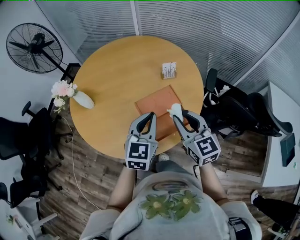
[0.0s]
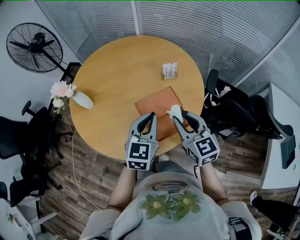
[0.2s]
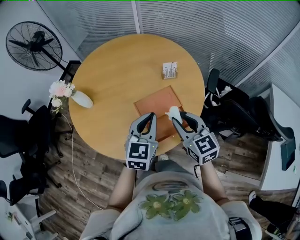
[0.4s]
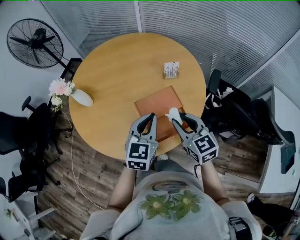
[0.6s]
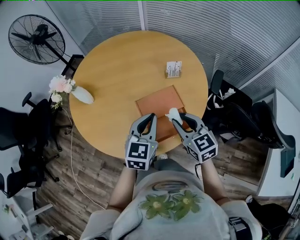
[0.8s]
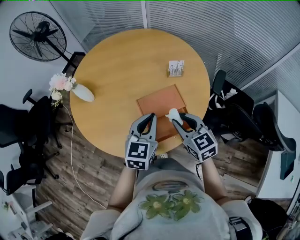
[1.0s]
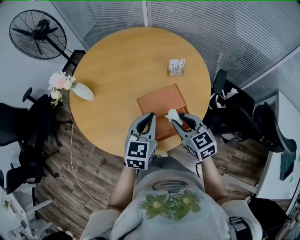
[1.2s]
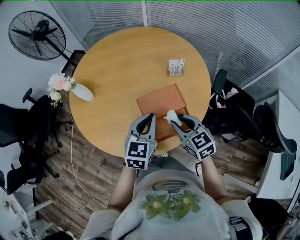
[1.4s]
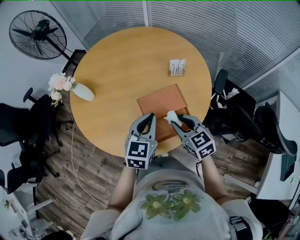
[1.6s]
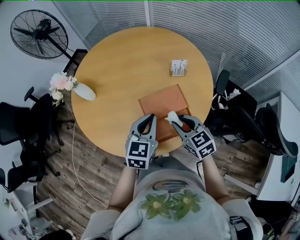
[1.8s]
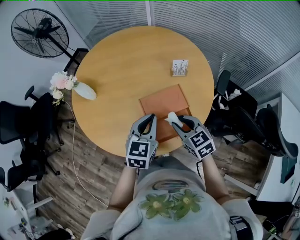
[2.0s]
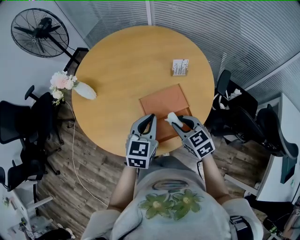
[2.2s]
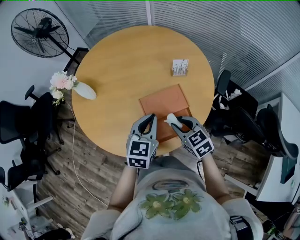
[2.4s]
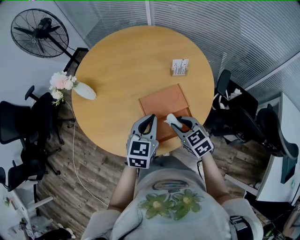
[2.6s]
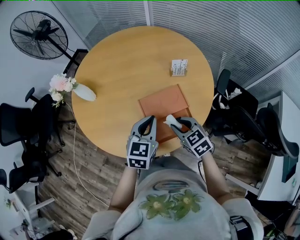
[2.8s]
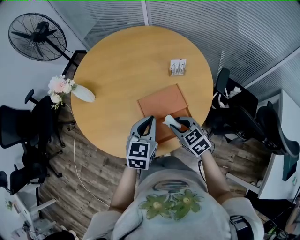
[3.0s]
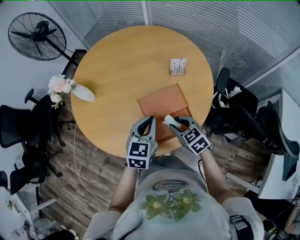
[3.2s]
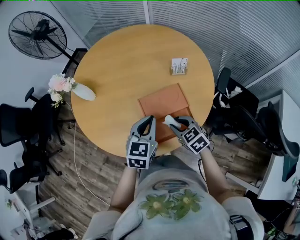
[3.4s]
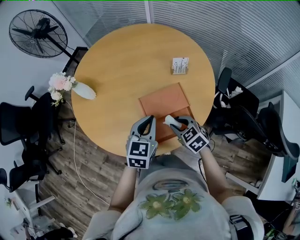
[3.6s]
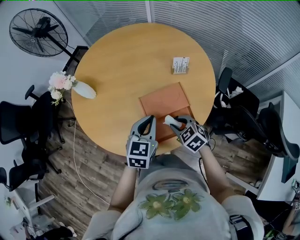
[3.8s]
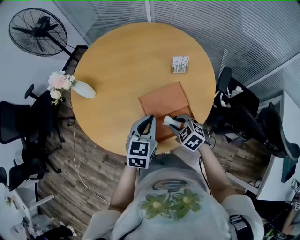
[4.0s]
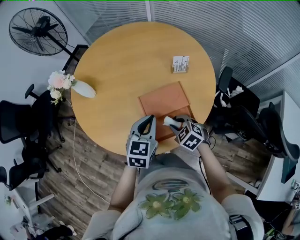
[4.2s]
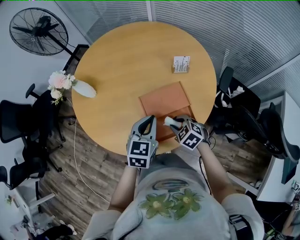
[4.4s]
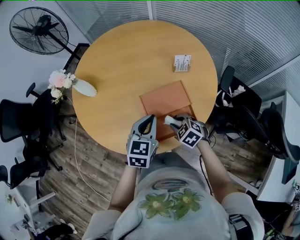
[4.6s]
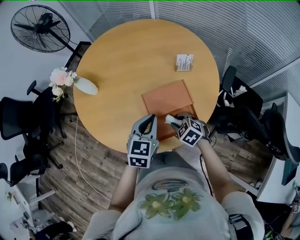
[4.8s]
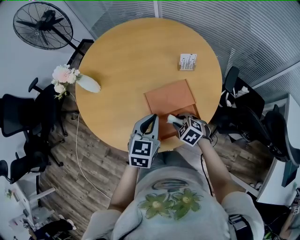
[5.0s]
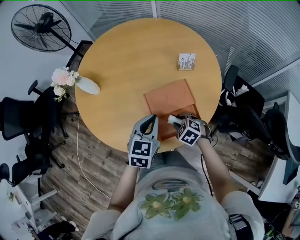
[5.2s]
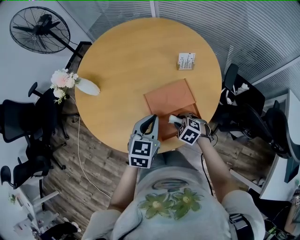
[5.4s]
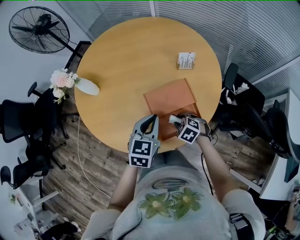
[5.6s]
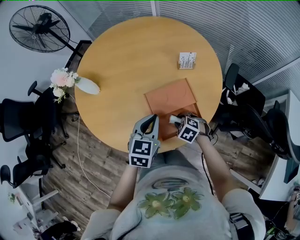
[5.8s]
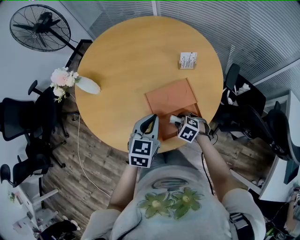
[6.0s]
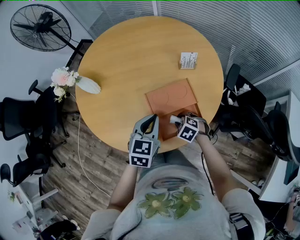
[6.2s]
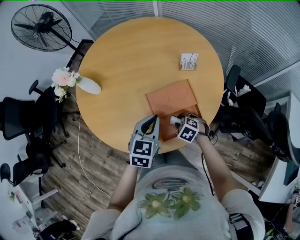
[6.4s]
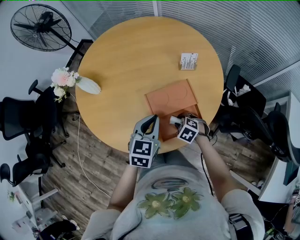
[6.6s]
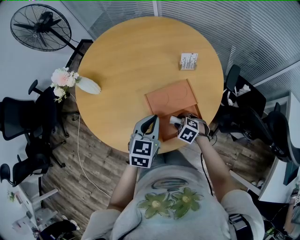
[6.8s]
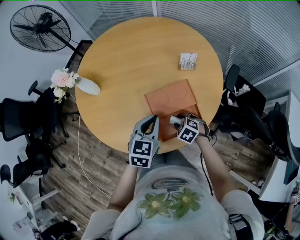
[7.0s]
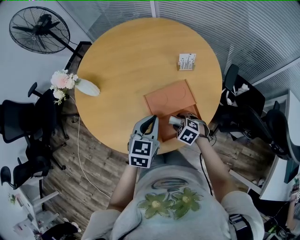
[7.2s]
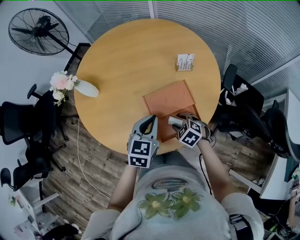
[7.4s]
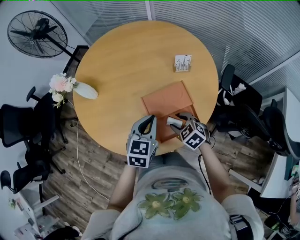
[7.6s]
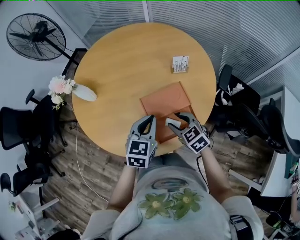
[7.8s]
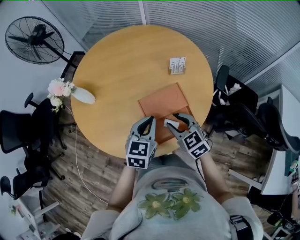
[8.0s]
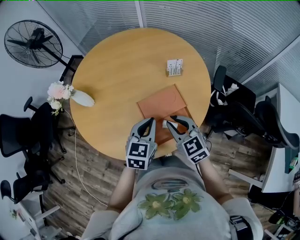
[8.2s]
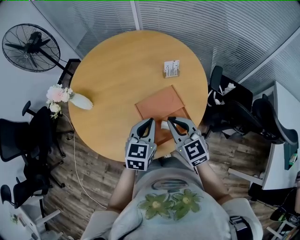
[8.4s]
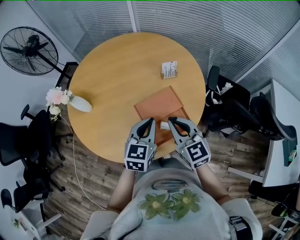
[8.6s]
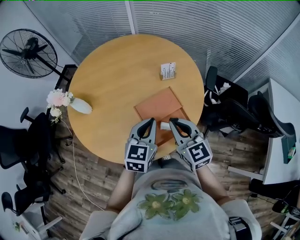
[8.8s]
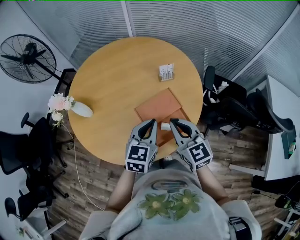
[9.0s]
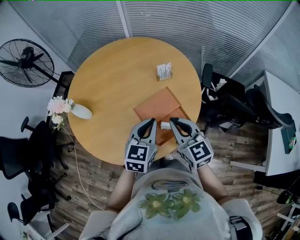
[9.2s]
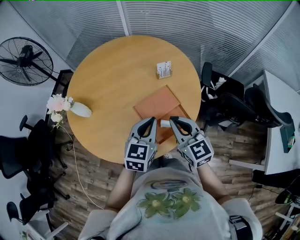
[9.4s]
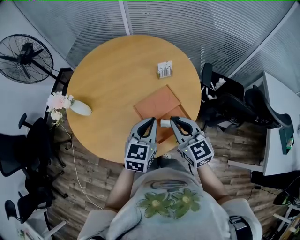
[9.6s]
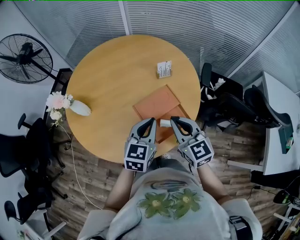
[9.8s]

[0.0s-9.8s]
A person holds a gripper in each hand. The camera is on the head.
0.0s to 1.4s: The right gripper moves downward, about 10 cm, and swivels approximately 20 degrees; the left gripper heads downward, covering roughly 5 cm.
1.4s to 2.8s: The right gripper shifts roughly 5 cm downward.
2.8s to 4.2s: The right gripper travels downward by roughly 5 cm, and swivels some 20 degrees.
4.2s to 5.6s: The right gripper travels downward by approximately 5 cm.
5.6s to 7.0s: The grippers make only small movements.
7.0s to 8.4s: The right gripper shifts approximately 25 cm upward, tilts its fingers approximately 50 degrees upward, and closes up.
8.4s to 9.8s: The right gripper shifts by about 5 cm.

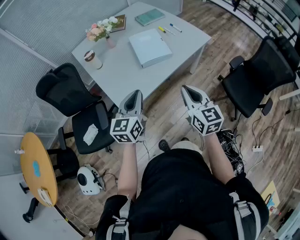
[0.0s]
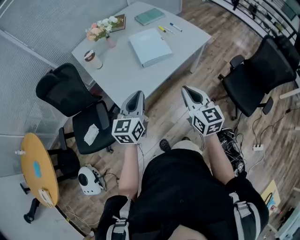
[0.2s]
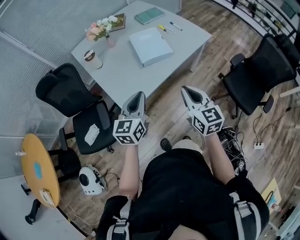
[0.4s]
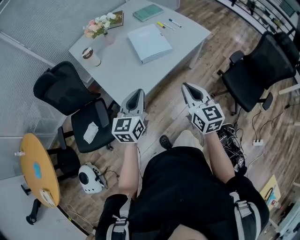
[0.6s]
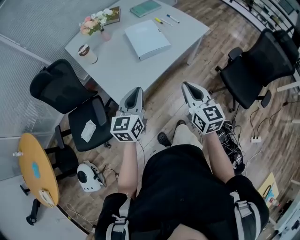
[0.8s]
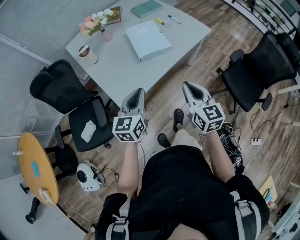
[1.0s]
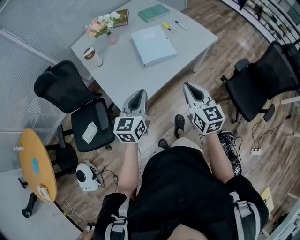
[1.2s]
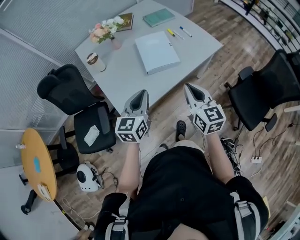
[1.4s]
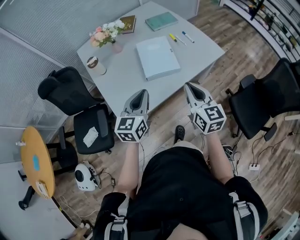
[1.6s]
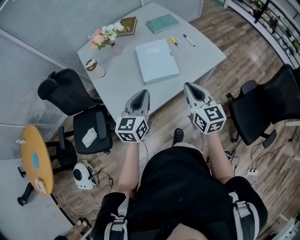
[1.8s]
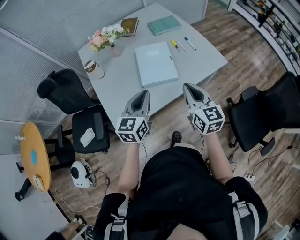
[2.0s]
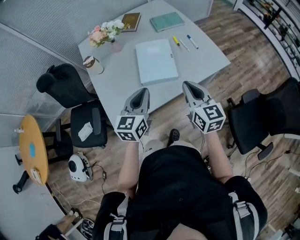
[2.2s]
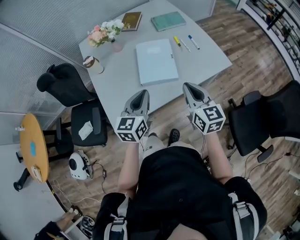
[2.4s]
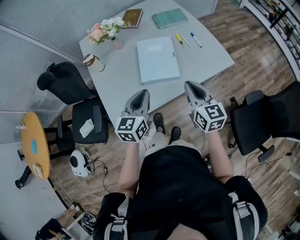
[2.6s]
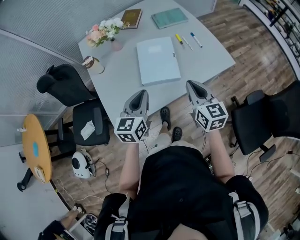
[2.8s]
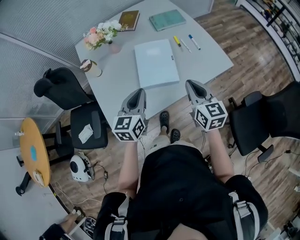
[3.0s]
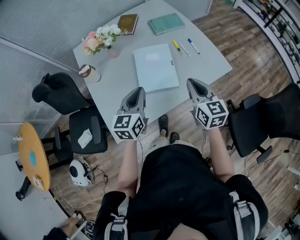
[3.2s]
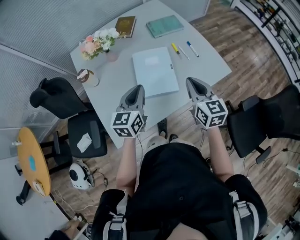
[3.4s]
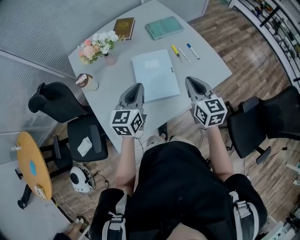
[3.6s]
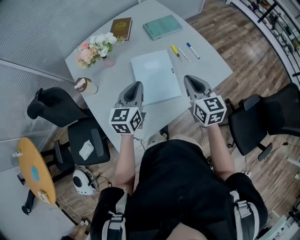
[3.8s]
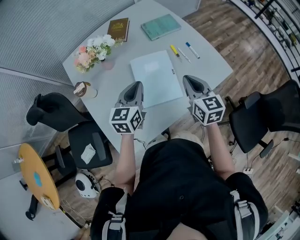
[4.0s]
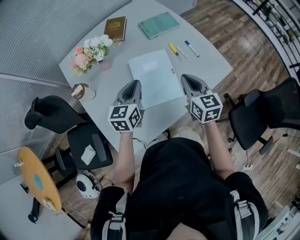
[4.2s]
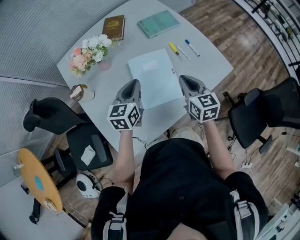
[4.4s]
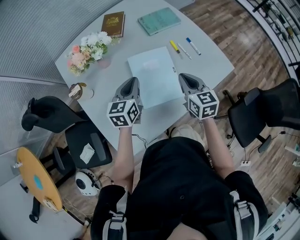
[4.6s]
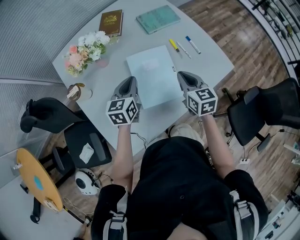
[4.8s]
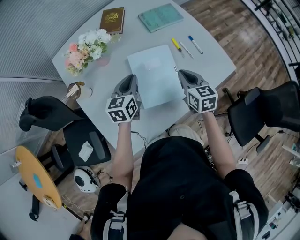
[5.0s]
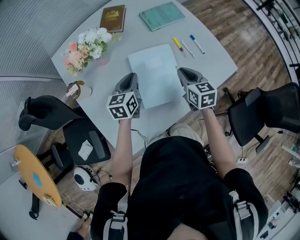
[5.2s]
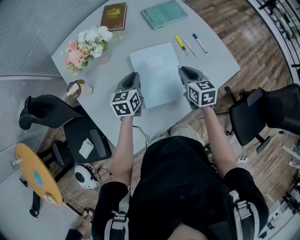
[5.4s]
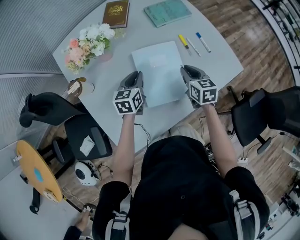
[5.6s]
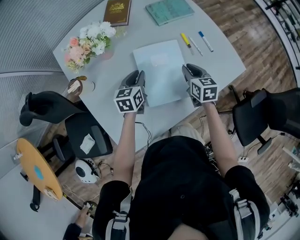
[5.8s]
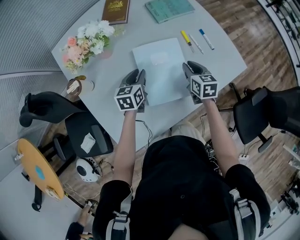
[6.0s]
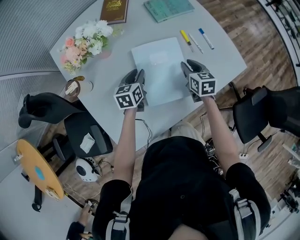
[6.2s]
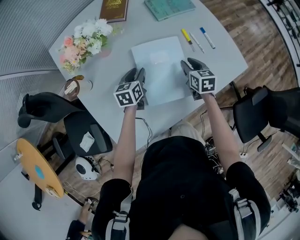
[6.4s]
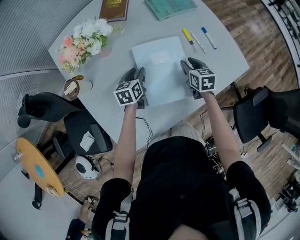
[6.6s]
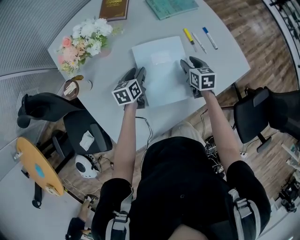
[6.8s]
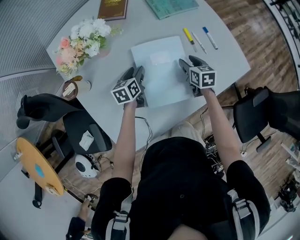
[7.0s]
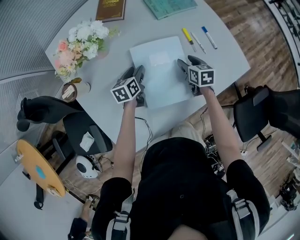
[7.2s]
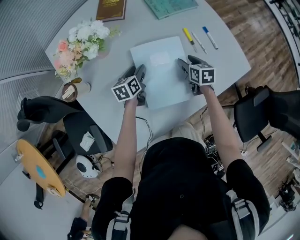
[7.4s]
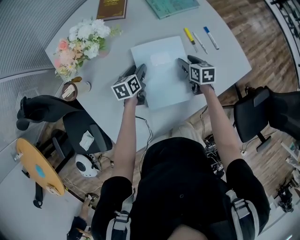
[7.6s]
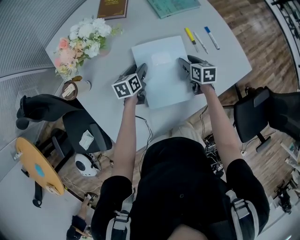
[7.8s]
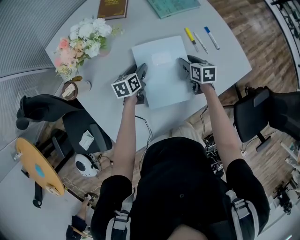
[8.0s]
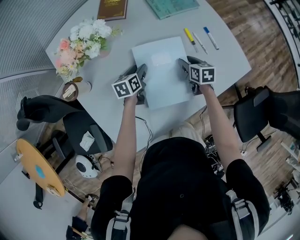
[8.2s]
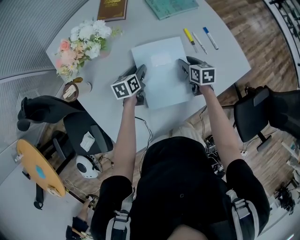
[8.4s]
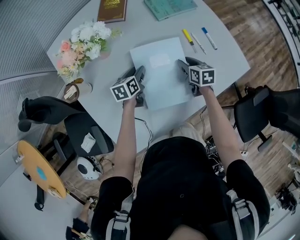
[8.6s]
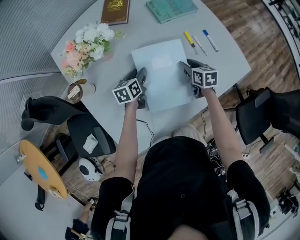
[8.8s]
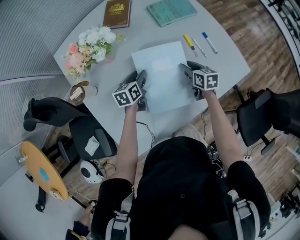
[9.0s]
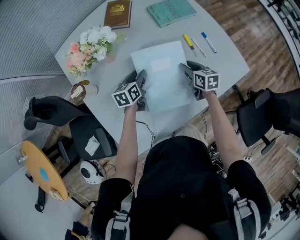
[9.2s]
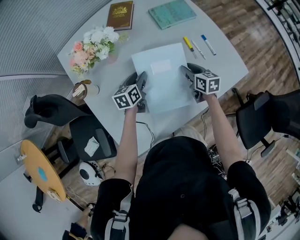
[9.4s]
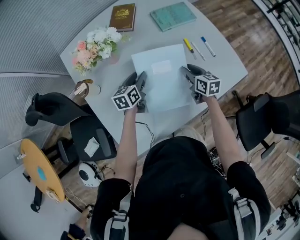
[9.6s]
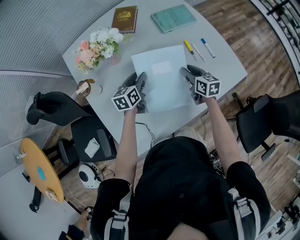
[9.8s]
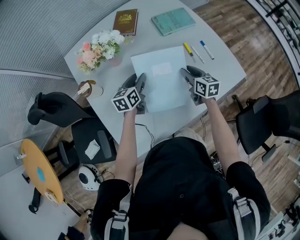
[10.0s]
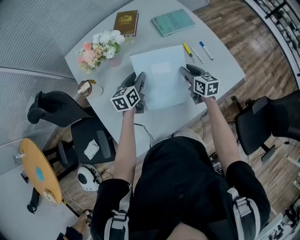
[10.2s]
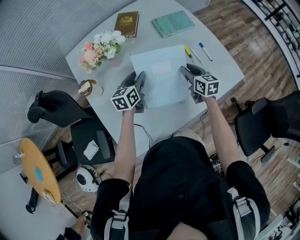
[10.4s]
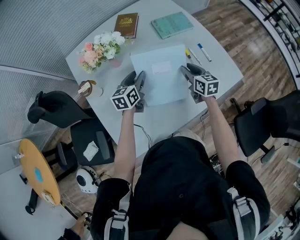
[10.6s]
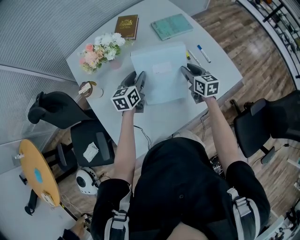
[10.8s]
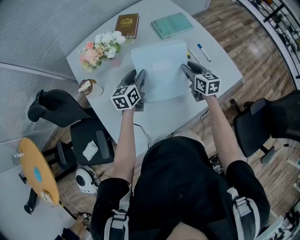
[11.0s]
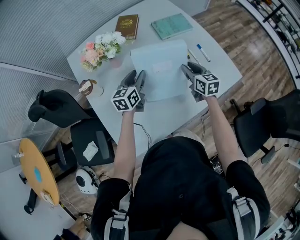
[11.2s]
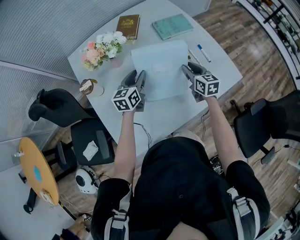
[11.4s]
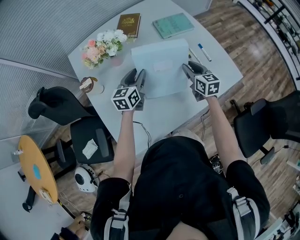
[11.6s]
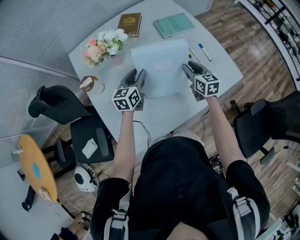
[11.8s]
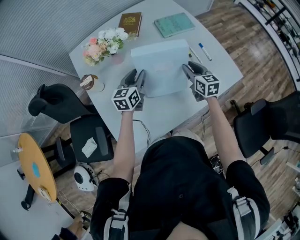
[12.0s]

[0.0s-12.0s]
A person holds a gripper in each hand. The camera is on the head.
0.0s to 1.6s: The grippers both shift forward by roughly 15 cm.
1.6s to 3.0s: The two grippers go roughly 15 cm forward and to the right.
3.0s to 4.4s: Both grippers travel together forward, some 20 cm.
4.4s to 6.0s: The grippers both shift downward and forward by roughly 15 cm. The left gripper opens its fingers.
6.0s to 7.6s: The right gripper heads downward and forward, covering roughly 10 cm, and opens its fingers. Meanwhile the left gripper shifts some 10 cm downward, and opens up.
7.6s to 9.0s: The left gripper is displaced upward by about 5 cm.
9.0s to 10.4s: The two grippers go about 10 cm upward.
10.4s to 12.0s: The grippers move only a little.

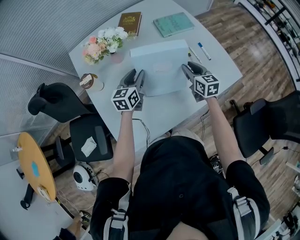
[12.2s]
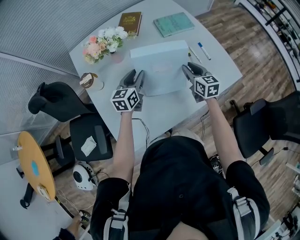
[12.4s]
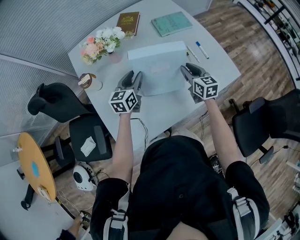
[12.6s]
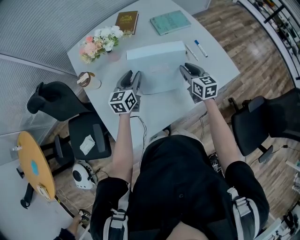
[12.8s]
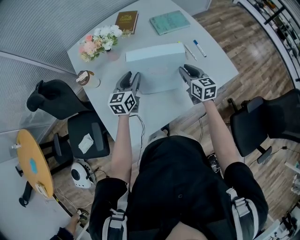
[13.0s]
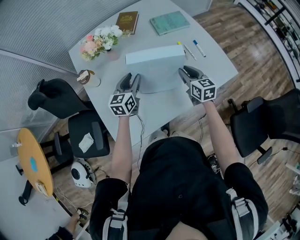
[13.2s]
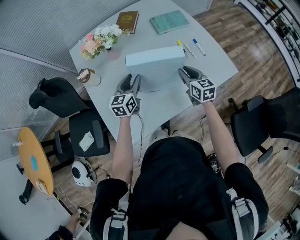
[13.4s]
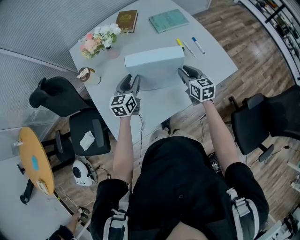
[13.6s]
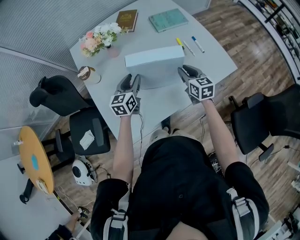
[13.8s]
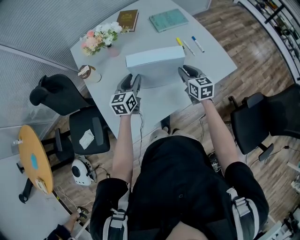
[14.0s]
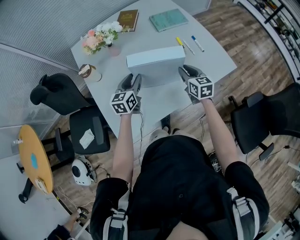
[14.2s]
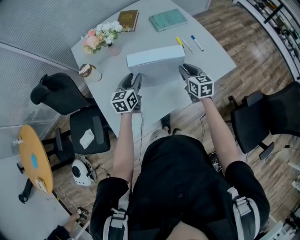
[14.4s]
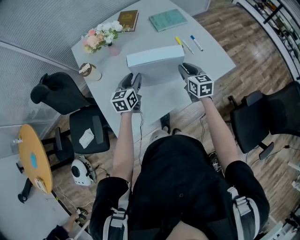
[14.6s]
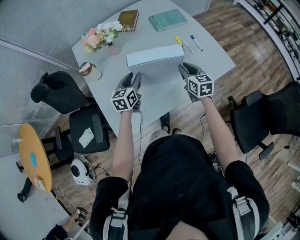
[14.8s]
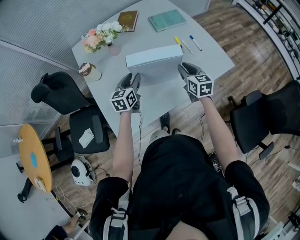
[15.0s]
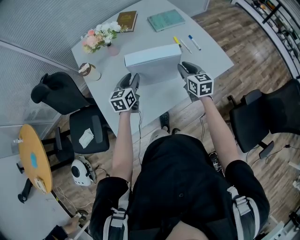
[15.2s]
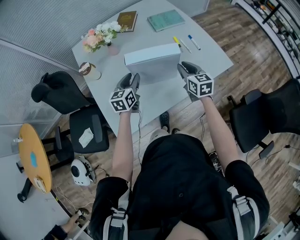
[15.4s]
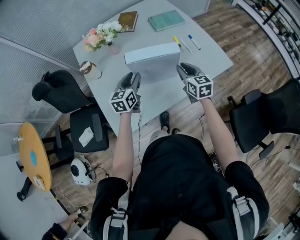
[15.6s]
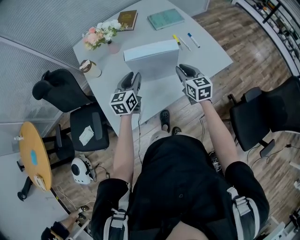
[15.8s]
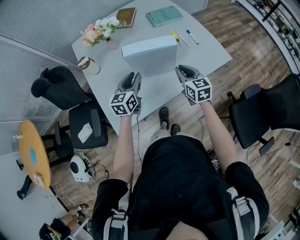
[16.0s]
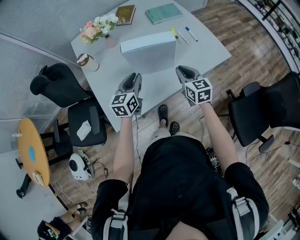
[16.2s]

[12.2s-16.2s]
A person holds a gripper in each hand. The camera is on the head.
12.2s to 13.6s: The two grippers go about 10 cm backward.
13.6s to 14.8s: The grippers stay close to where they were, moving slightly.
14.8s to 16.2s: The two grippers go roughly 10 cm backward.
